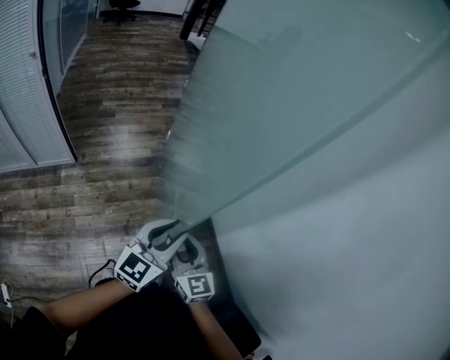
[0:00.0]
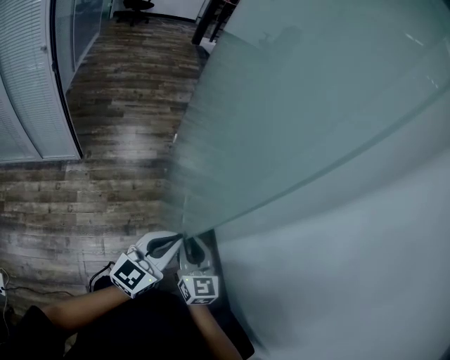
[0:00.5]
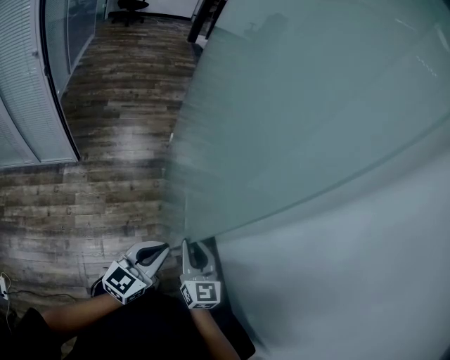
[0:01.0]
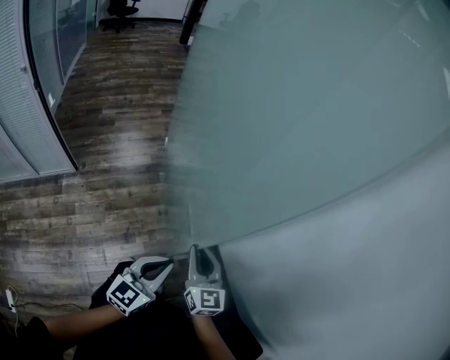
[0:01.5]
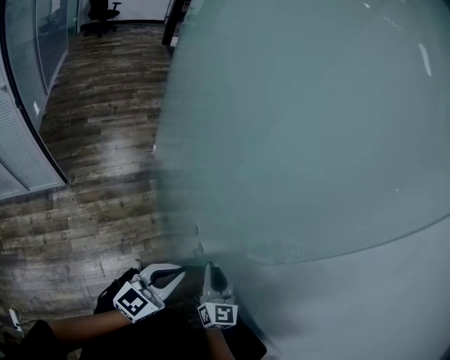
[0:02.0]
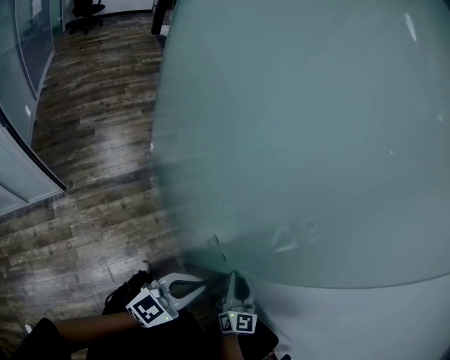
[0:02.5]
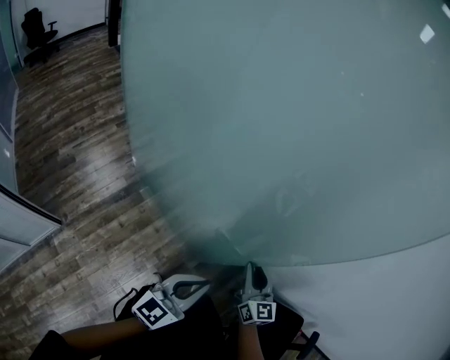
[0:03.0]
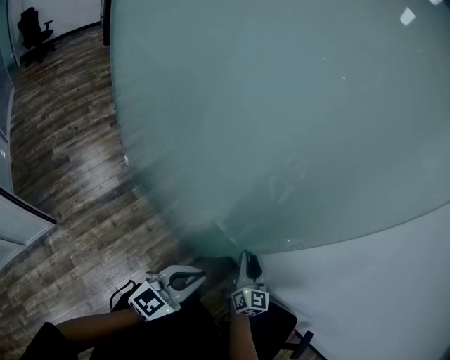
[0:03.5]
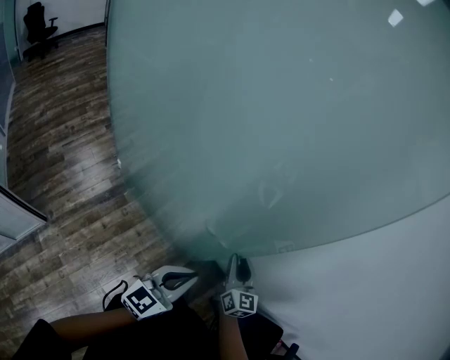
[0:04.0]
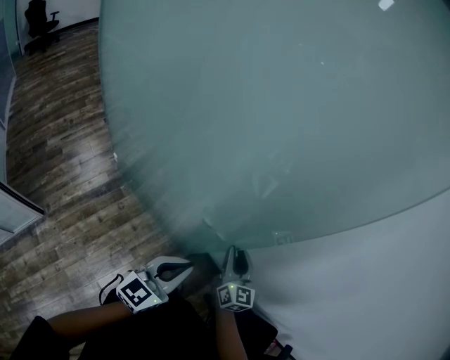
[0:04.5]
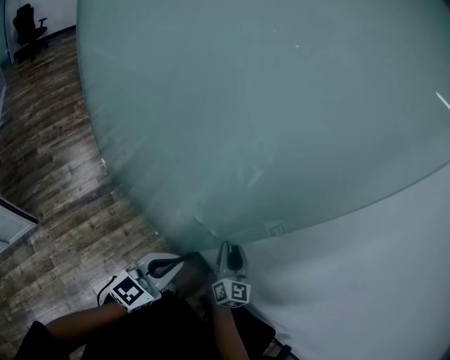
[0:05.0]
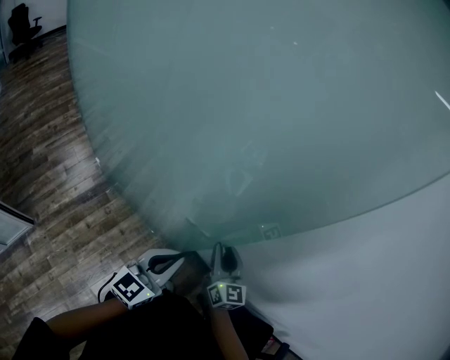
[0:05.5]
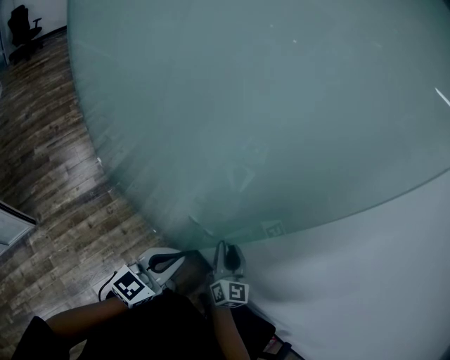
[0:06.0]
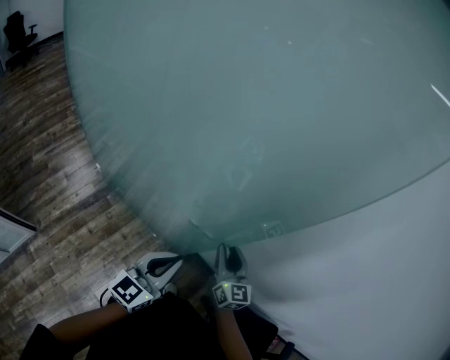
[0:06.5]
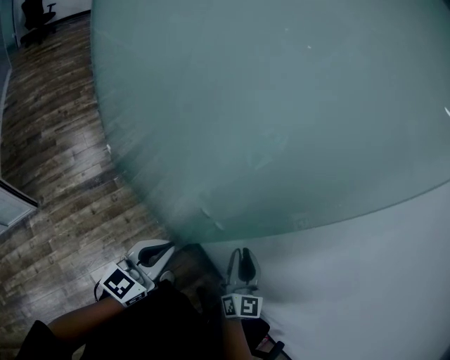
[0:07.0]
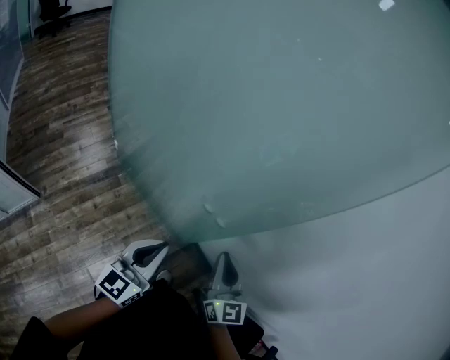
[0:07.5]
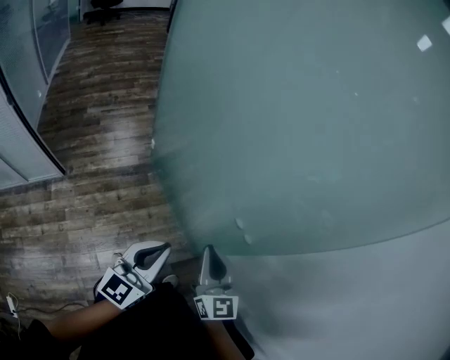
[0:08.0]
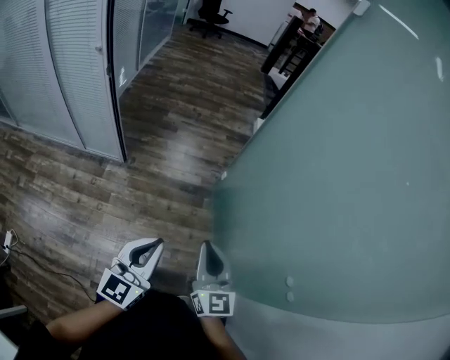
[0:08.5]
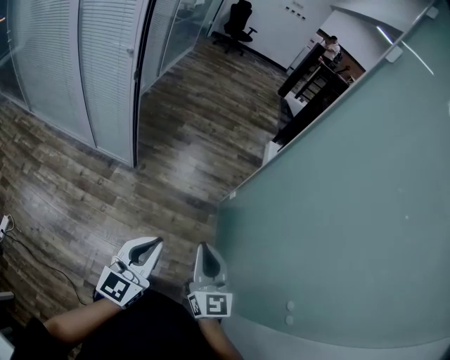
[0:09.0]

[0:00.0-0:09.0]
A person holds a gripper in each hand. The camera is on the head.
0:00.0 to 0:02.0: The right gripper goes roughly 15 cm to the right, and changes its angle by about 20 degrees. Meanwhile the left gripper heads to the right, covering approximately 5 cm, and closes.
0:02.0 to 0:04.5: The left gripper moves approximately 15 cm, and rotates some 20 degrees, while the right gripper shifts by roughly 20 cm, and rotates approximately 30 degrees.
0:04.5 to 0:07.0: The left gripper ends up approximately 5 cm from where it was. Meanwhile the right gripper heads upward, covering roughly 5 cm.
0:07.0 to 0:09.0: The right gripper shifts by roughly 50 cm, changes its angle by about 60 degrees, and closes up, while the left gripper changes place by about 35 cm, and turns by about 60 degrees.

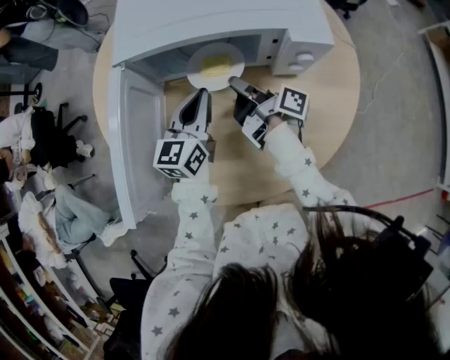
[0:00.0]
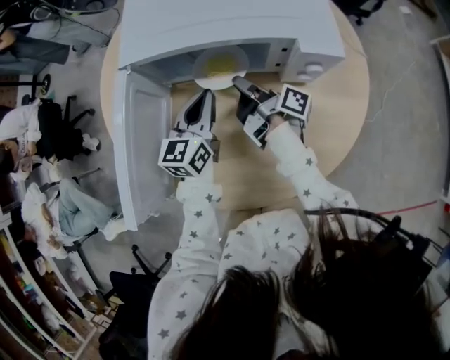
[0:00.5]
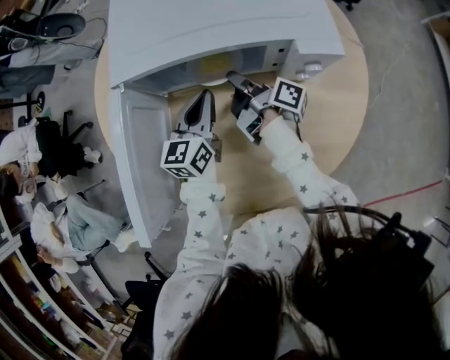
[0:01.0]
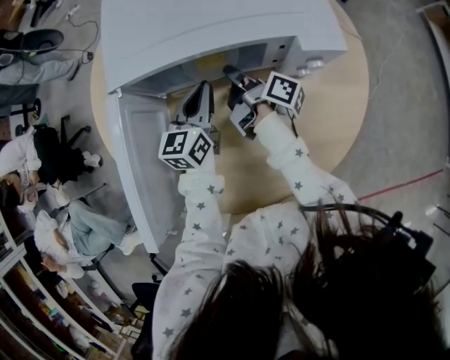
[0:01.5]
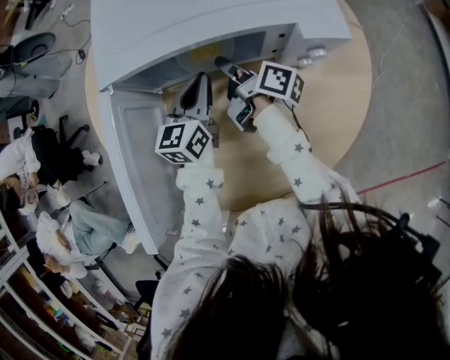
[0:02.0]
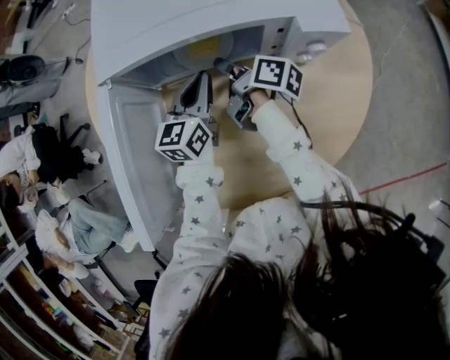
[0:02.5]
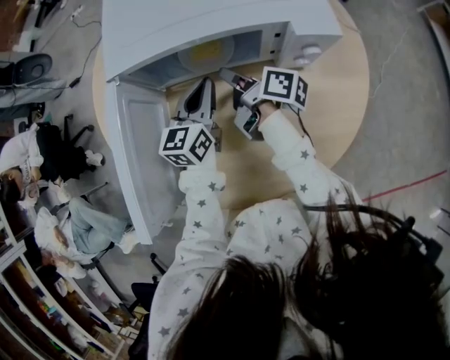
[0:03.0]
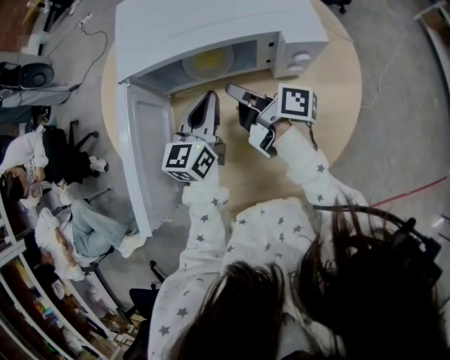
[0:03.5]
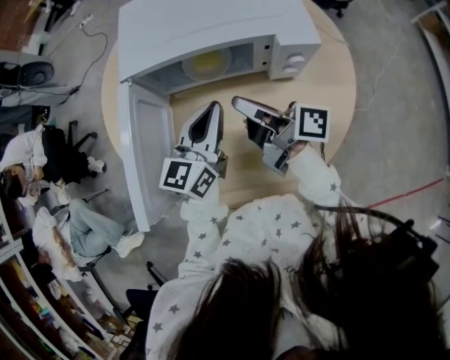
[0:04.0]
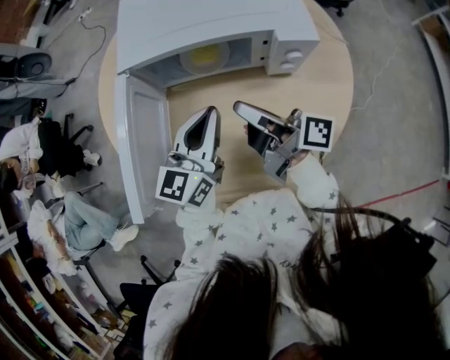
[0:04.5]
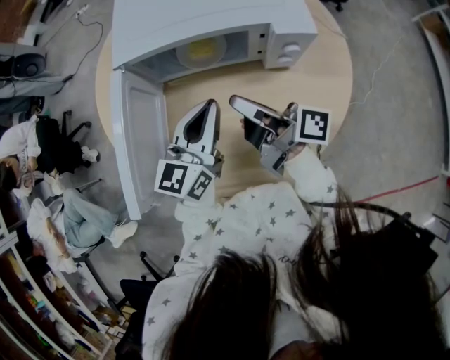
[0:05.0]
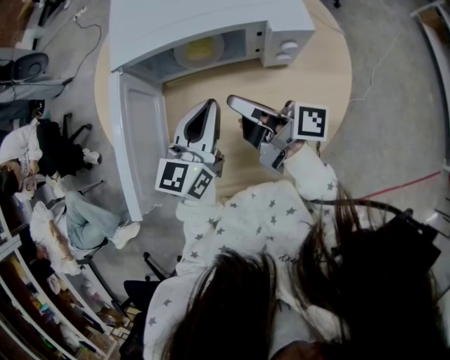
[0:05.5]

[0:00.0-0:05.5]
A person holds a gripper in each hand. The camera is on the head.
0:00.0 to 0:02.0: The left gripper moves approximately 10 cm.
0:02.0 to 0:03.5: The left gripper changes place by about 10 cm.
0:03.5 to 0:05.5: The left gripper shifts by roughly 10 cm.

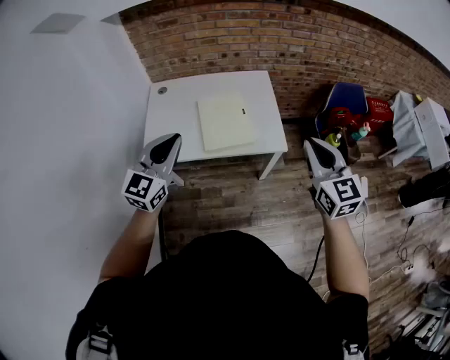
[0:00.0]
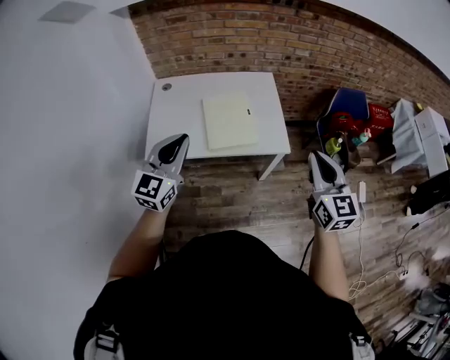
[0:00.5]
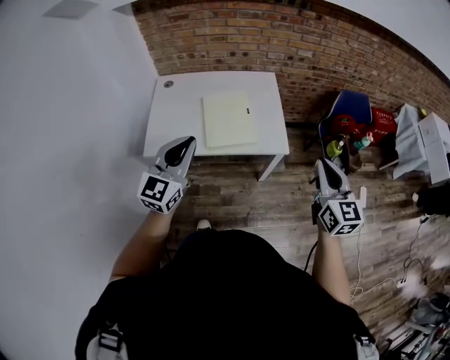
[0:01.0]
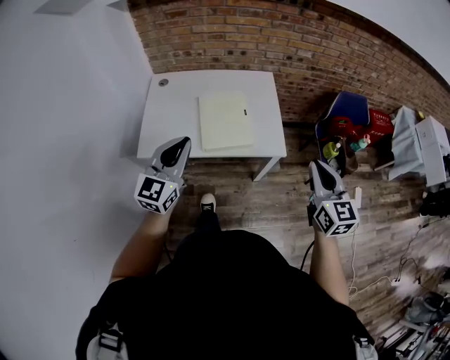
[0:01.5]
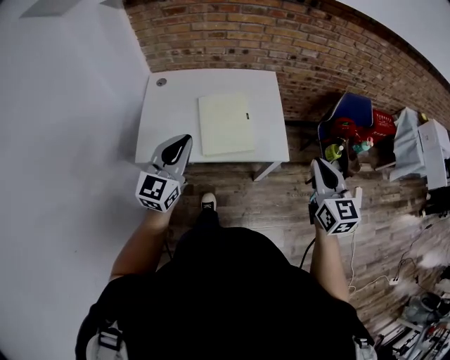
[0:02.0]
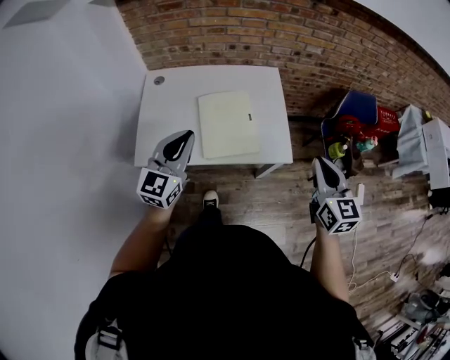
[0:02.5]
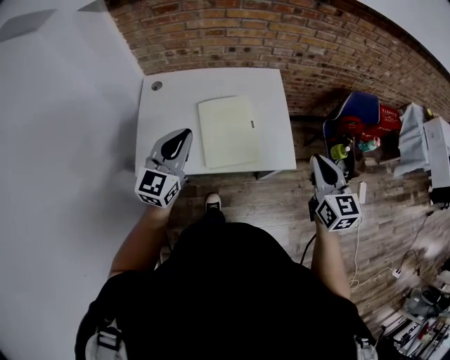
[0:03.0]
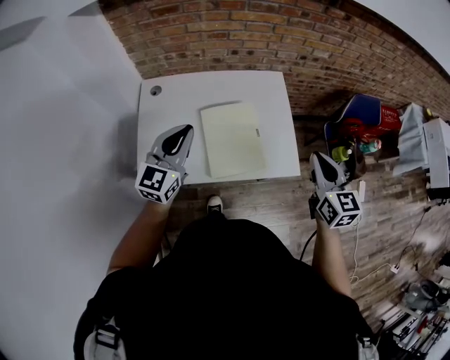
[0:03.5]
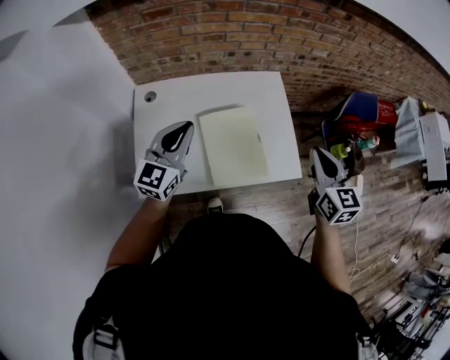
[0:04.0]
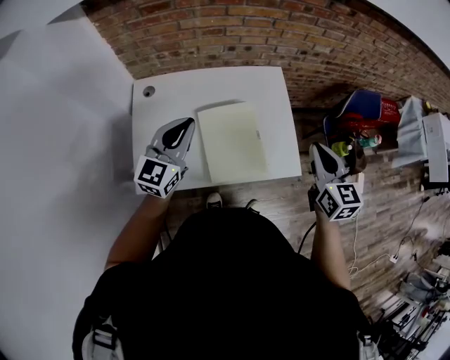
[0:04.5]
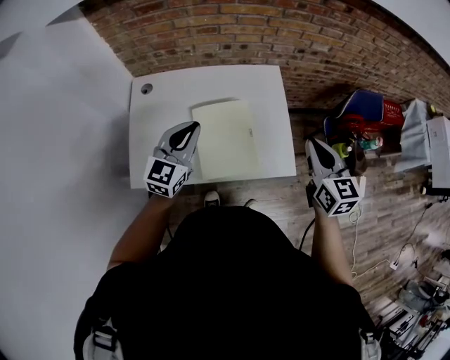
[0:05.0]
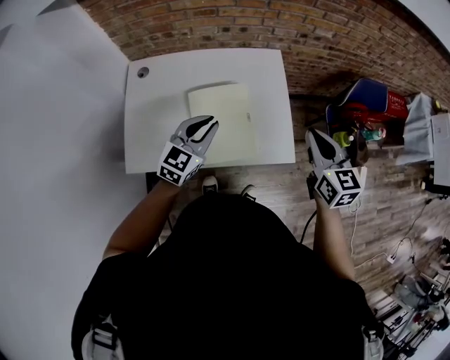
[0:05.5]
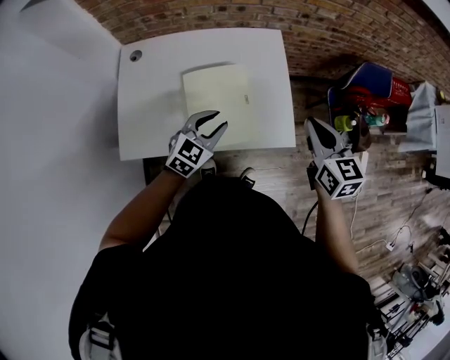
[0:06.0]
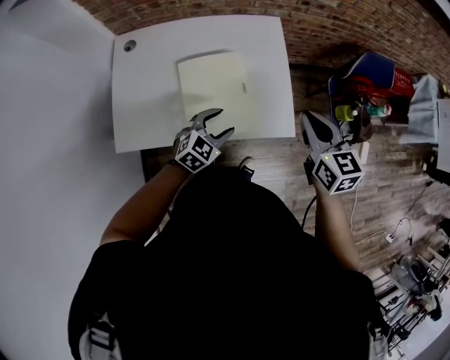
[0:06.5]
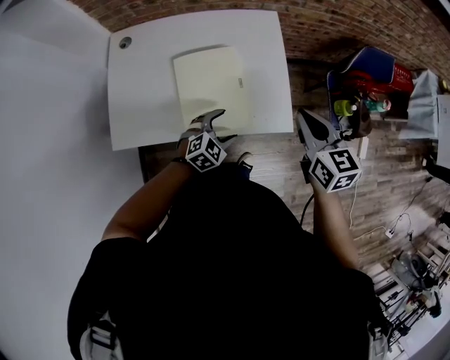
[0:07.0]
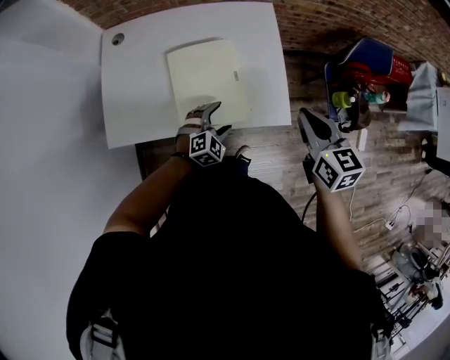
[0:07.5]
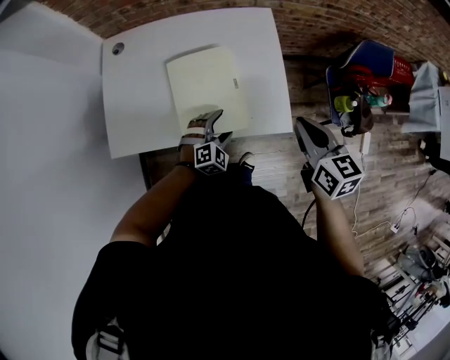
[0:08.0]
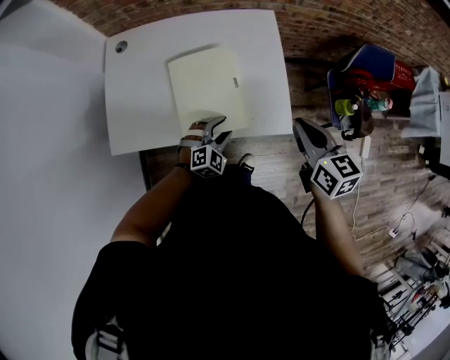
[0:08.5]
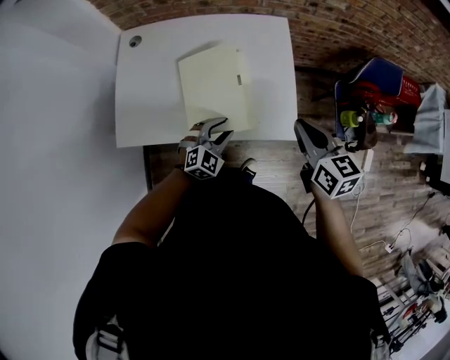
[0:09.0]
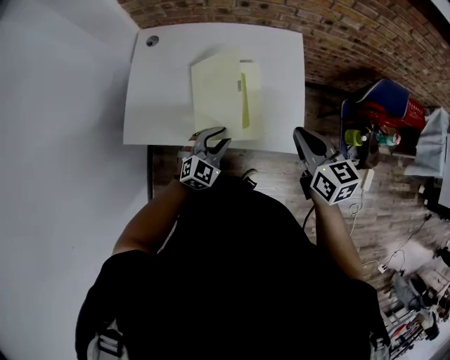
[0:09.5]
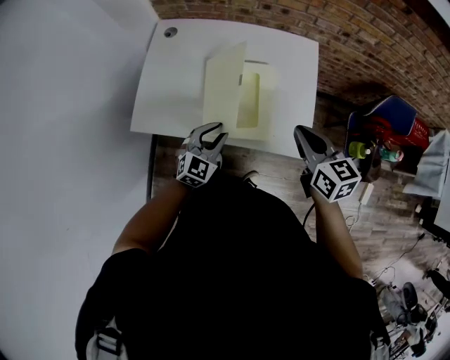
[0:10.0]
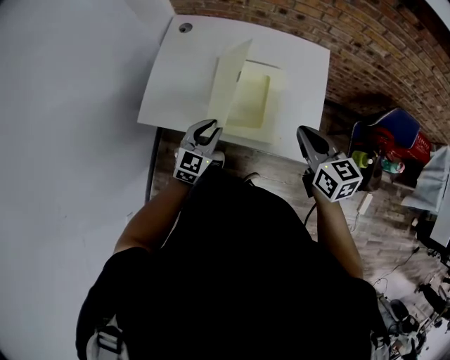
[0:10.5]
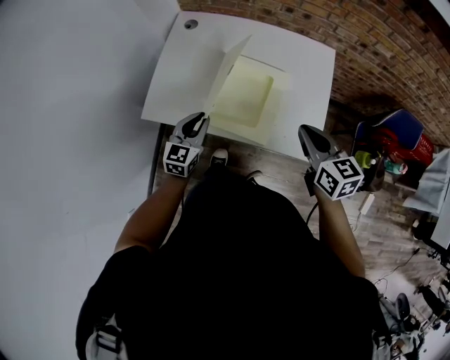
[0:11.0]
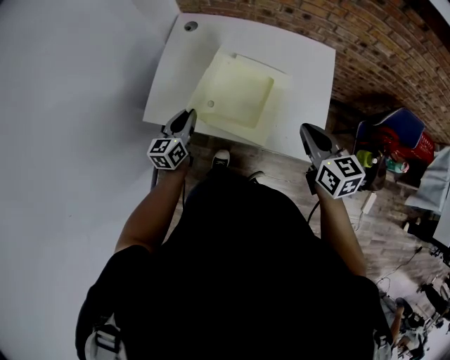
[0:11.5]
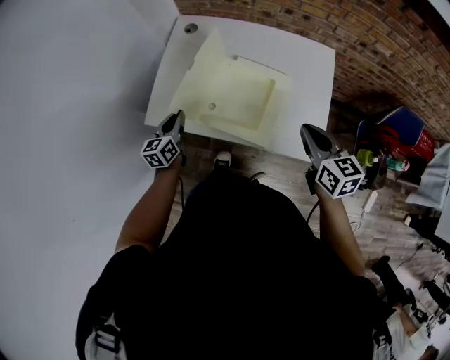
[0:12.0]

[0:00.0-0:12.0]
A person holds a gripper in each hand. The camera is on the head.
0:00.0 to 0:02.0: The right gripper is displaced downward by about 5 cm; the left gripper is displaced forward and downward by some 10 cm.
0:02.0 to 0:04.0: The right gripper moves forward and to the left, approximately 20 cm; the left gripper goes roughly 20 cm forward.
0:04.0 to 0:06.0: The left gripper shifts about 25 cm to the right and downward, and rotates some 30 degrees; the right gripper moves downward and to the right, approximately 10 cm.
0:06.0 to 0:08.0: The right gripper goes about 5 cm downward; the left gripper shifts some 15 cm downward, rotates approximately 30 degrees, and opens.
0:08.0 to 0:10.0: The left gripper heads to the left and upward, covering some 15 cm, rotates roughly 40 degrees, and closes up, while the right gripper is displaced to the left by roughly 5 cm.
0:10.0 to 0:12.0: The left gripper goes approximately 20 cm to the left, and rolls counterclockwise, seen from behind, by roughly 50 degrees.
